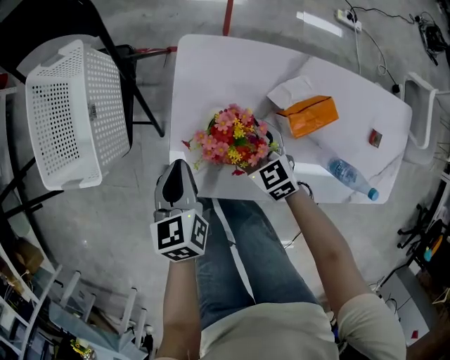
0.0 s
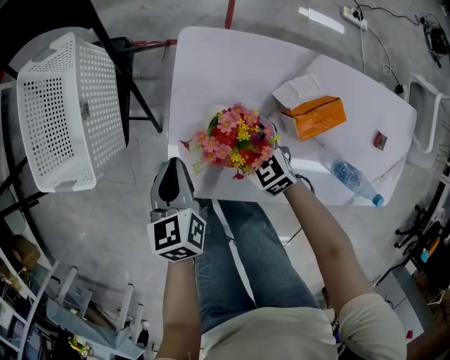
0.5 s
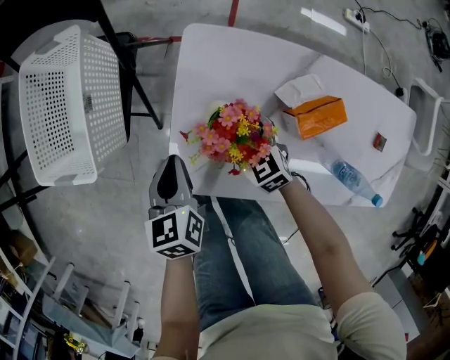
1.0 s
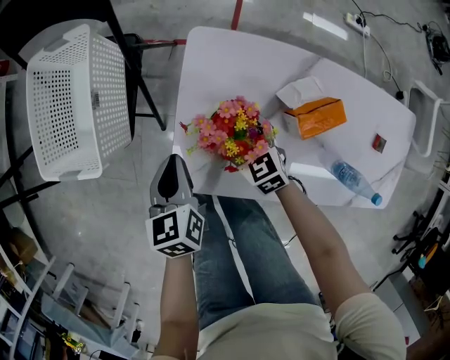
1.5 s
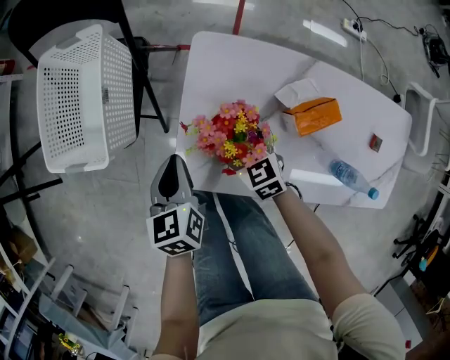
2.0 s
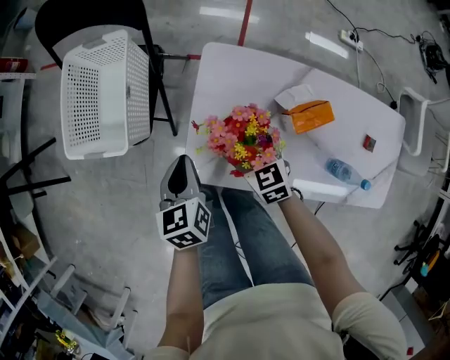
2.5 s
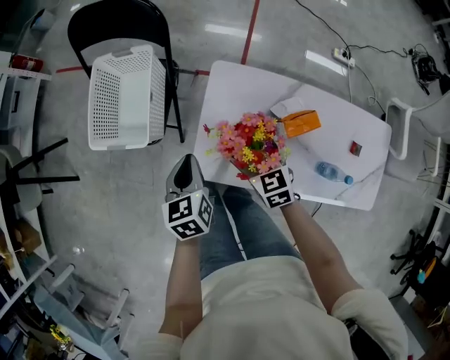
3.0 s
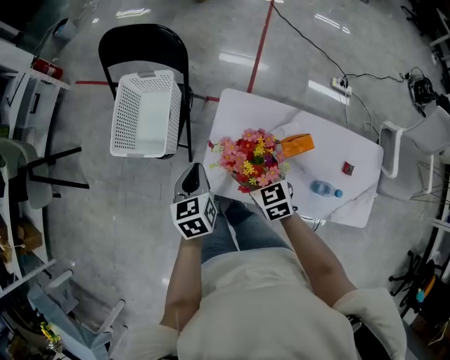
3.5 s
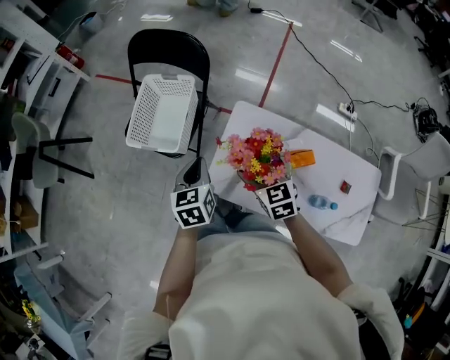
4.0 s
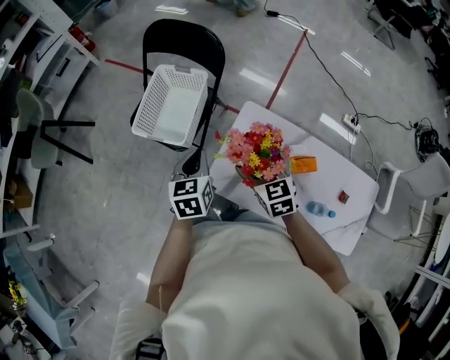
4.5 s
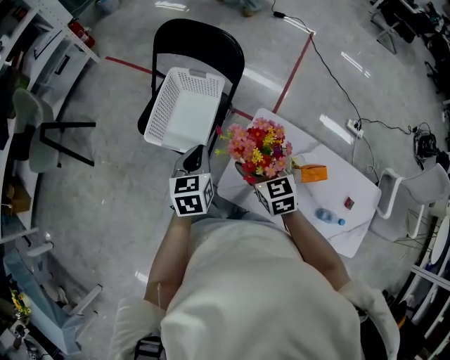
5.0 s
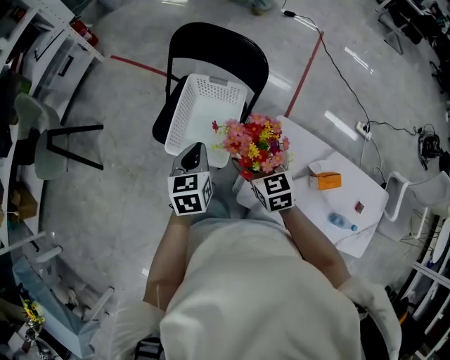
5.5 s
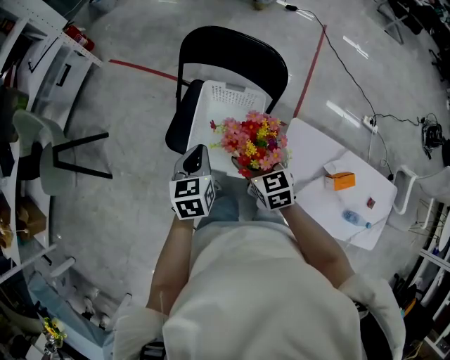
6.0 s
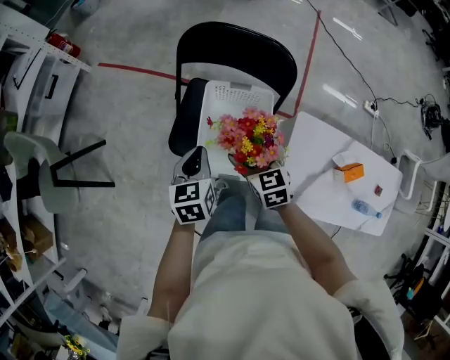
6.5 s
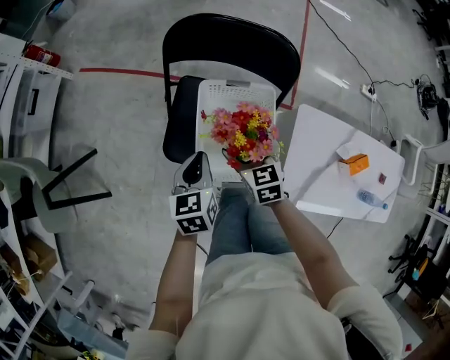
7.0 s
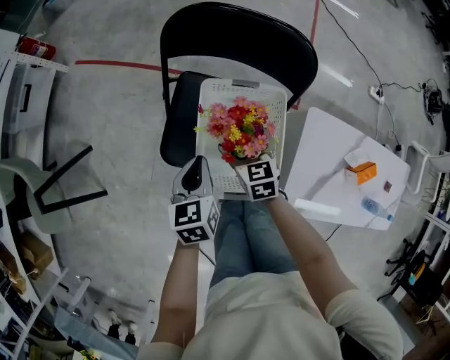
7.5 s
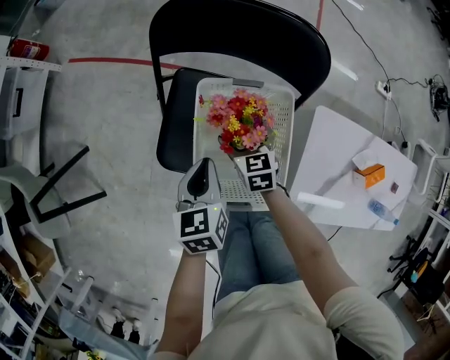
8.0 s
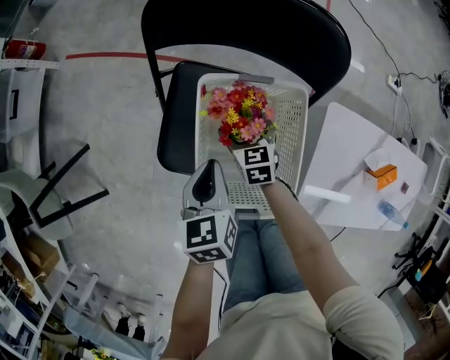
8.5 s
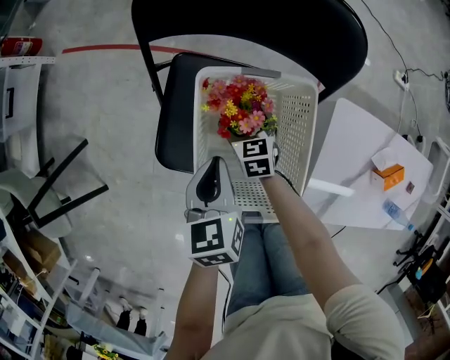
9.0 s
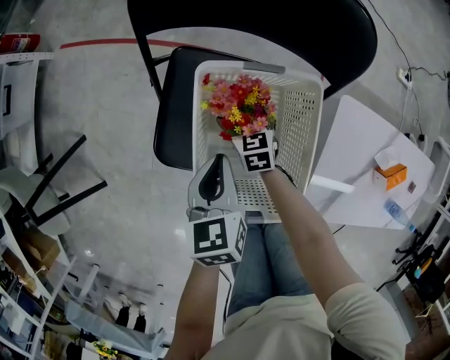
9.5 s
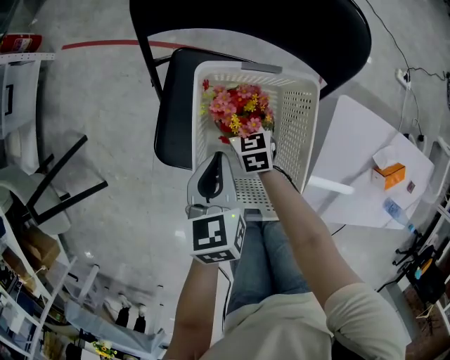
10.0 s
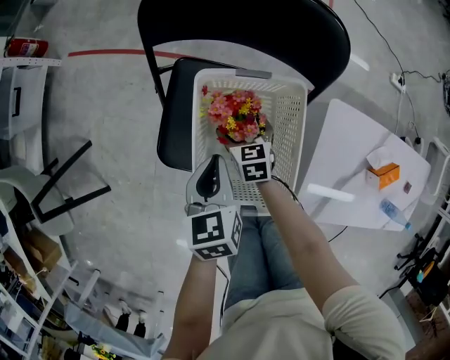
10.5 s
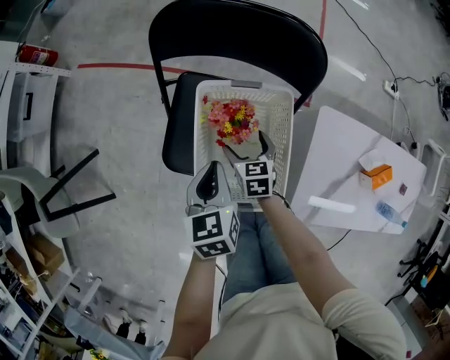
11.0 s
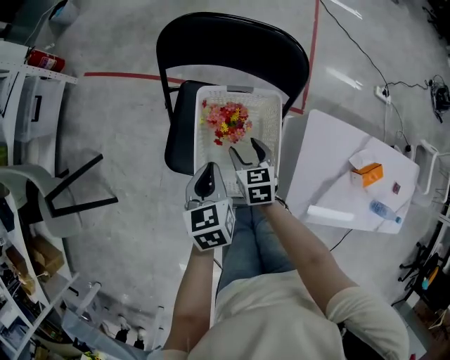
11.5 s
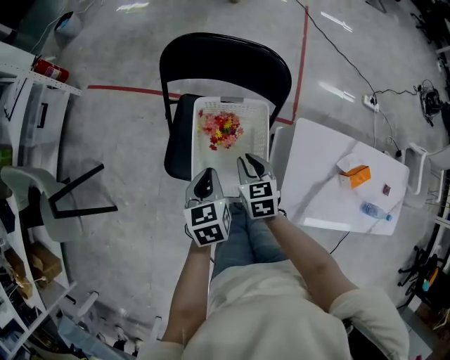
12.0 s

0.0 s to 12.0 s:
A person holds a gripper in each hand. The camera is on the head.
0.0 to 2.0 s: The grippers make only small movements.
2.0 to 4.0 s: The two grippers go approximately 25 cm upward.
4.0 to 6.0 s: The grippers both shift to the left and forward by roughly 35 cm.
6.0 to 8.0 s: The right gripper heads downward and forward, covering about 25 cm. The left gripper goes approximately 15 cm downward and forward.
8.0 to 10.0 s: The right gripper travels downward by roughly 10 cm.
10.0 to 12.0 s: The right gripper is displaced upward and backward by approximately 25 cm, and closes. The left gripper moves upward and backward, about 10 cm.

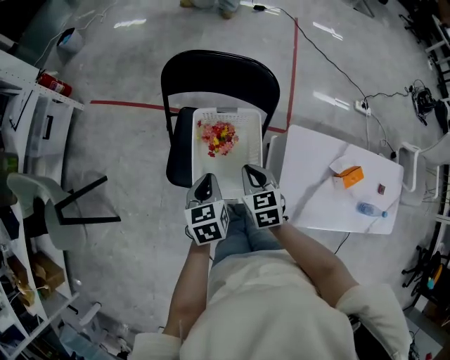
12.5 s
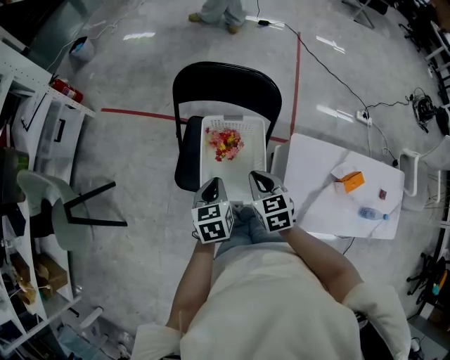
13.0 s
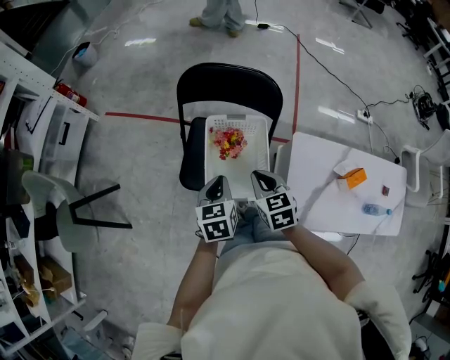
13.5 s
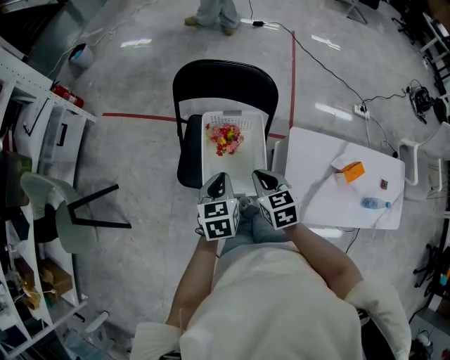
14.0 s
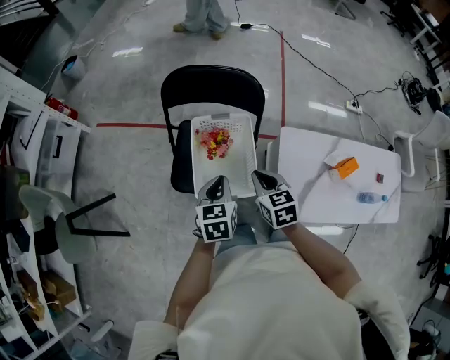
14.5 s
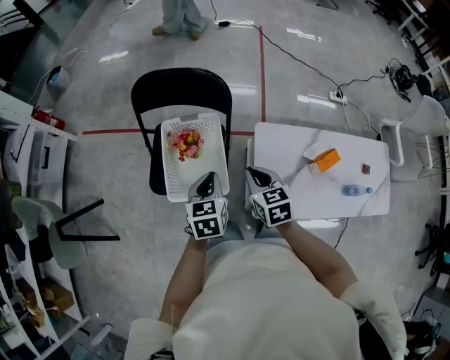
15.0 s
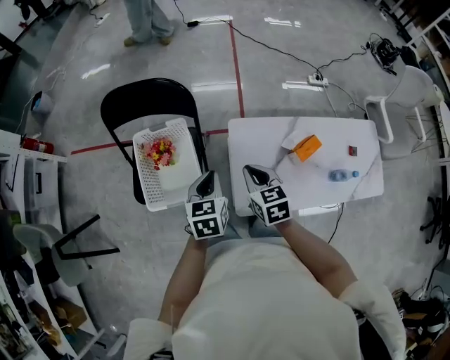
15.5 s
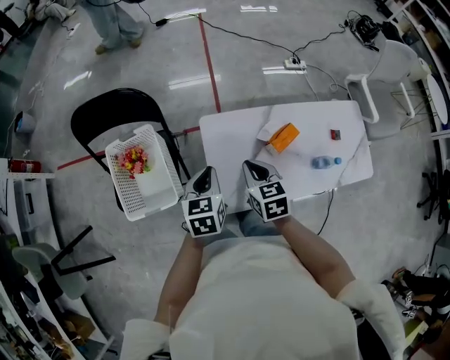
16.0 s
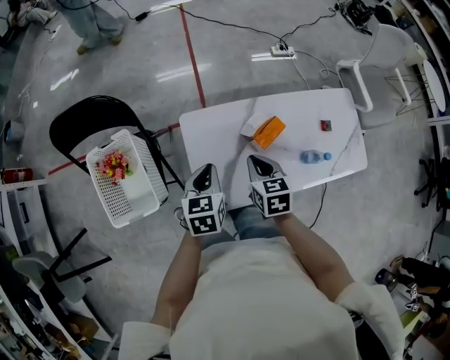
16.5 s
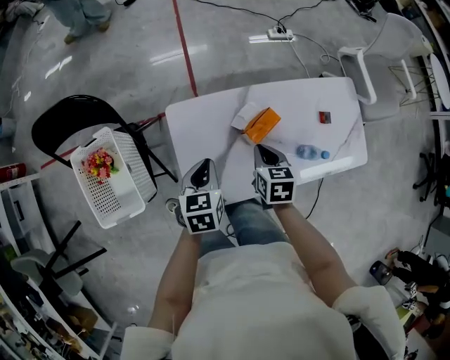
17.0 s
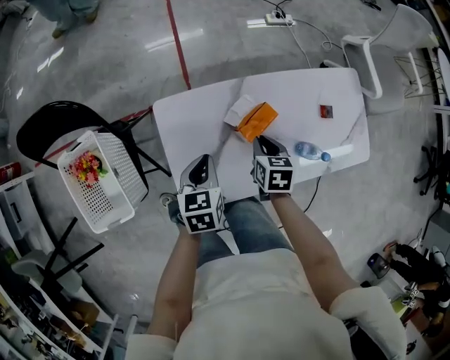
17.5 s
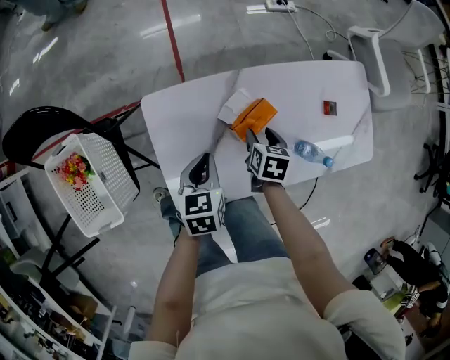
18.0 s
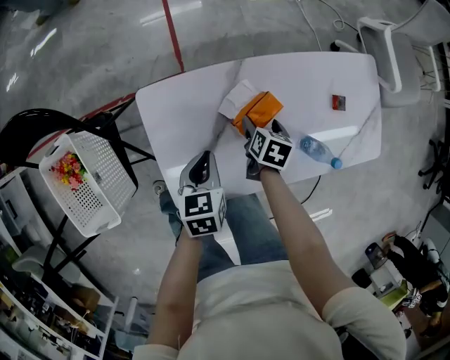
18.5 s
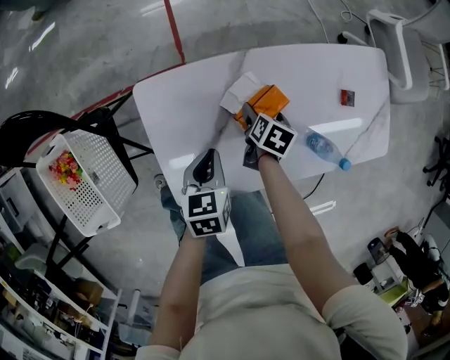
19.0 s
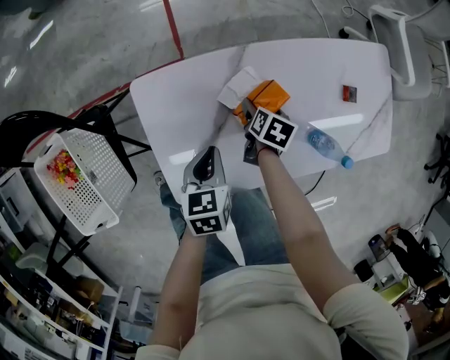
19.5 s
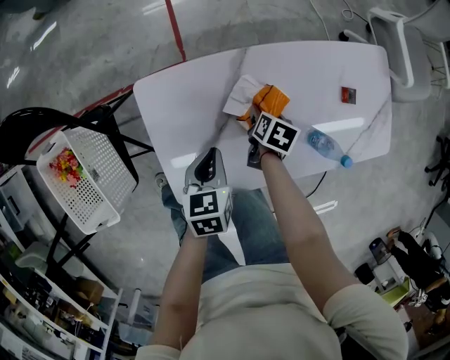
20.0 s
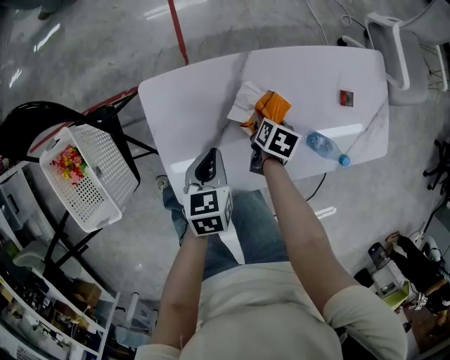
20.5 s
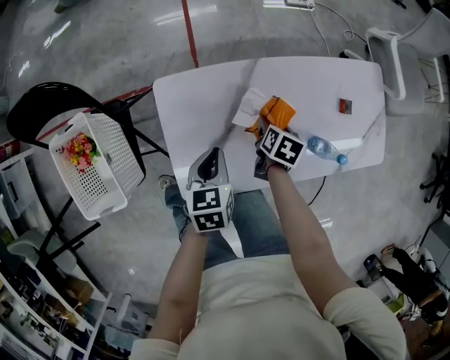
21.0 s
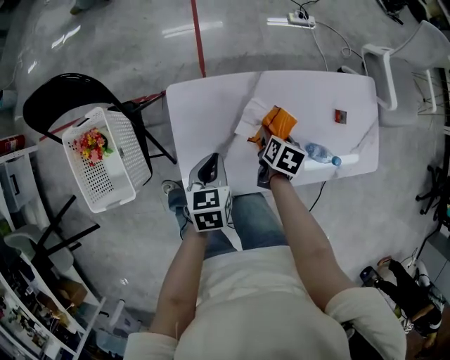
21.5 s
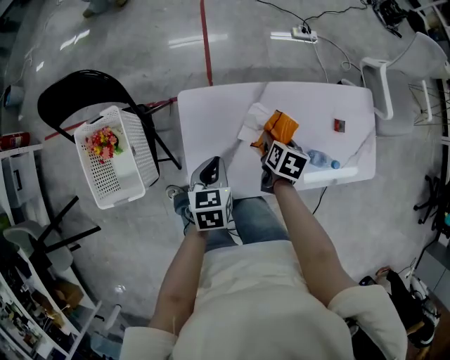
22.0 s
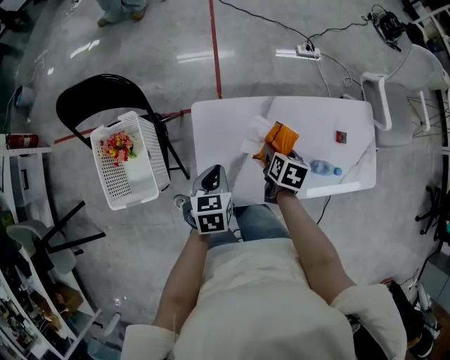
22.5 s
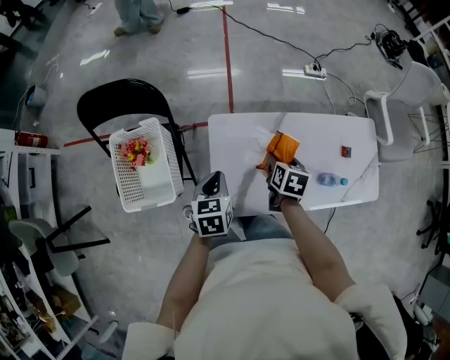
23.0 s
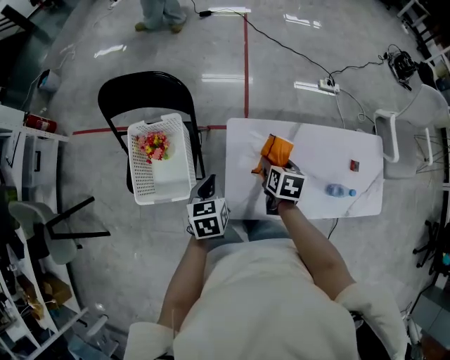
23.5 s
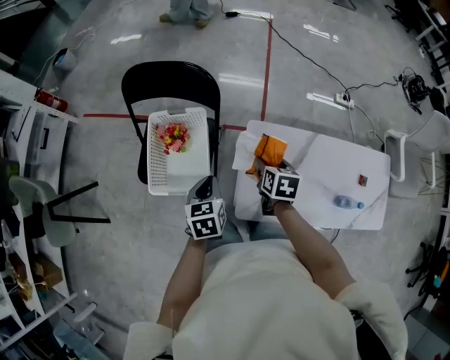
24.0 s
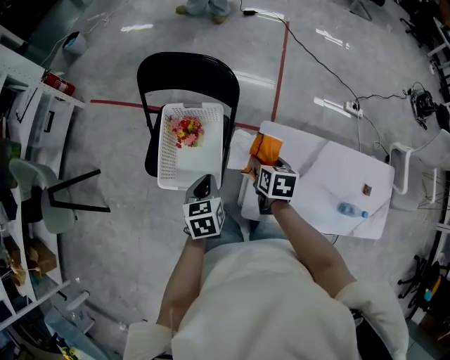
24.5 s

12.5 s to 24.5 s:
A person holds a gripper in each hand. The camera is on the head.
12.5 to 14.5 s: The right gripper heads backward and upward, covering approximately 10 cm. Meanwhile the left gripper moves approximately 10 cm.
14.5 to 16.5 s: The grippers both shift to the right by about 40 cm. The right gripper changes its angle by roughly 30 degrees.
16.5 to 18.5 s: The left gripper goes approximately 20 cm downward and to the right, while the right gripper heads downward and to the right, covering some 30 cm, turns by some 40 degrees, and opens up.
18.5 to 20.5 s: There are only small adjustments of the grippers.
20.5 to 22.5 s: The left gripper moves upward, to the left and backward, approximately 15 cm. The right gripper goes roughly 20 cm upward.
22.5 to 24.5 s: The right gripper changes place by about 35 cm, and changes its angle by roughly 30 degrees. The left gripper shifts by some 30 cm, and changes its angle by some 20 degrees.

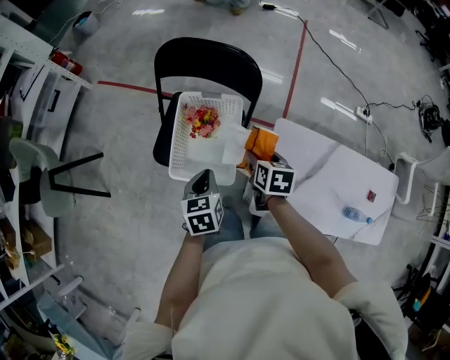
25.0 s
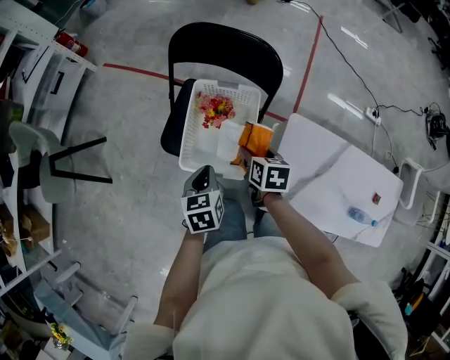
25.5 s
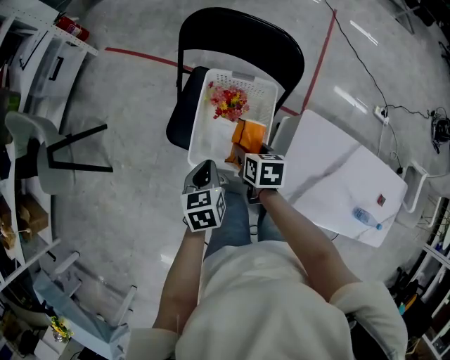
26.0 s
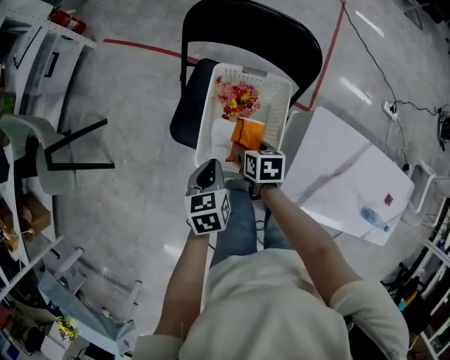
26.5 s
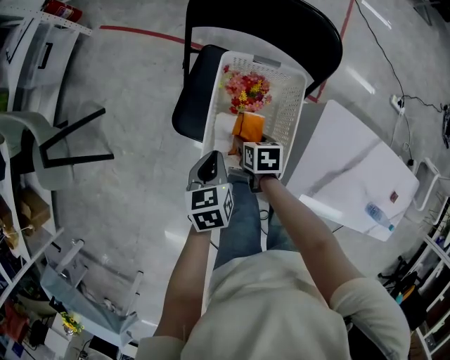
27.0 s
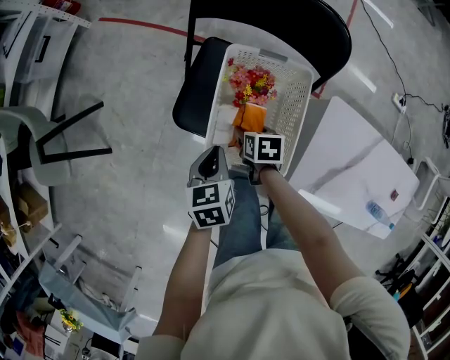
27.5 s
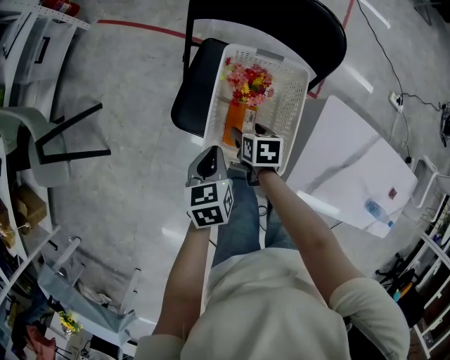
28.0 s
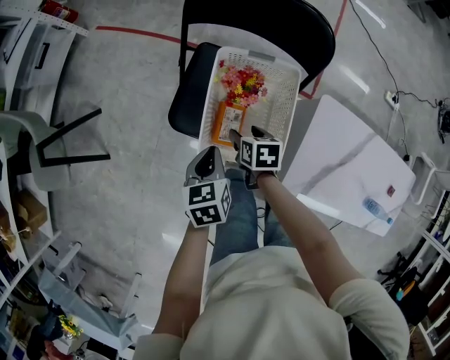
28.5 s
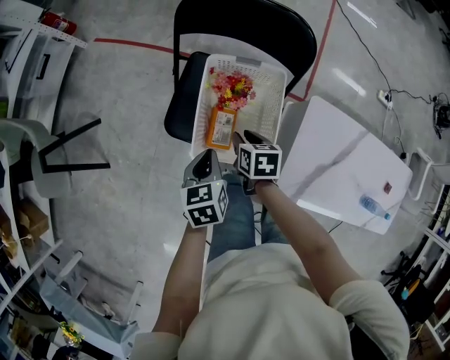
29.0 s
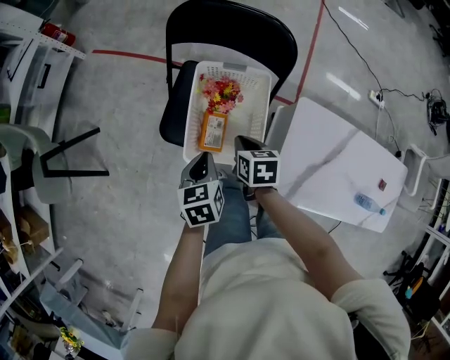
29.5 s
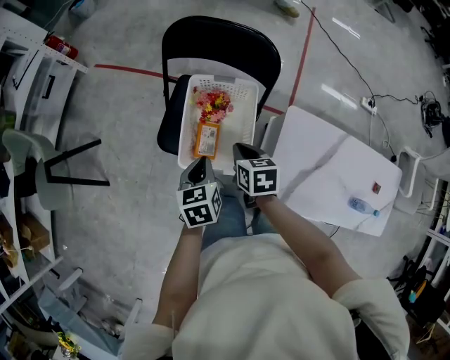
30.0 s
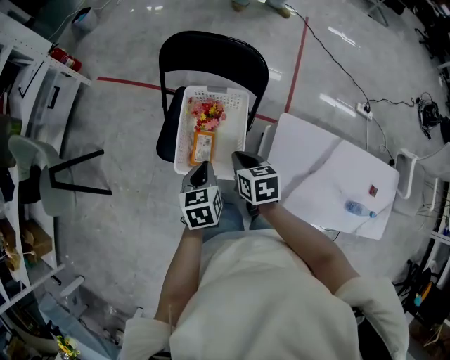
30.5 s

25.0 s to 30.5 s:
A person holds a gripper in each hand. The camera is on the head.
25.0 to 27.0 s: The right gripper moves to the left and downward, some 25 cm, and changes its angle by roughly 20 degrees, while the left gripper shifts roughly 15 cm to the left, downward and forward.
27.0 to 28.5 s: The grippers make only small movements.
28.5 to 30.5 s: The left gripper goes about 10 cm upward and to the right. Meanwhile the right gripper goes about 20 cm upward and to the right, and closes.
